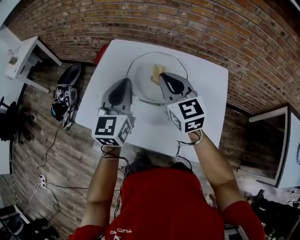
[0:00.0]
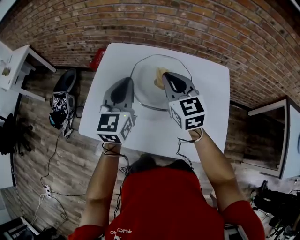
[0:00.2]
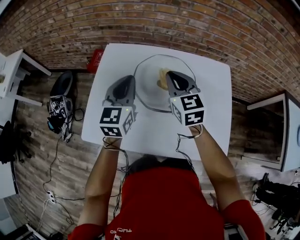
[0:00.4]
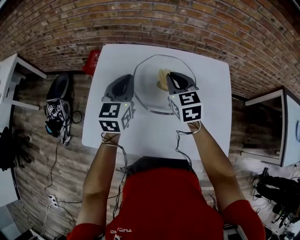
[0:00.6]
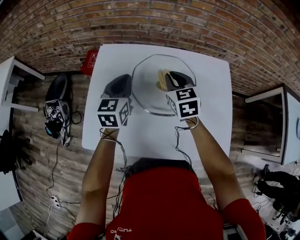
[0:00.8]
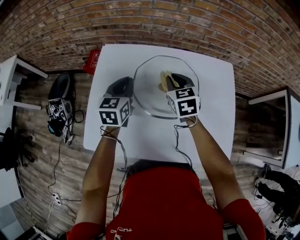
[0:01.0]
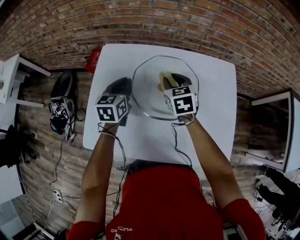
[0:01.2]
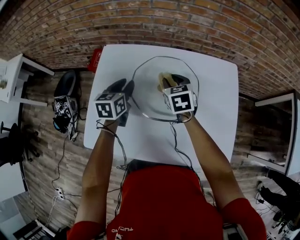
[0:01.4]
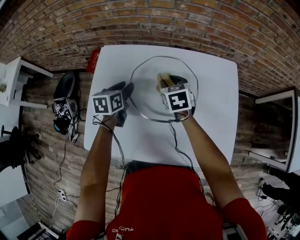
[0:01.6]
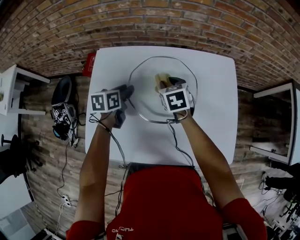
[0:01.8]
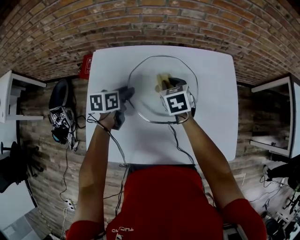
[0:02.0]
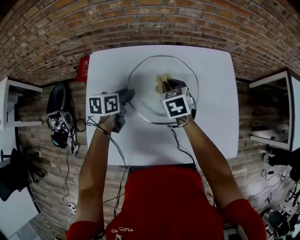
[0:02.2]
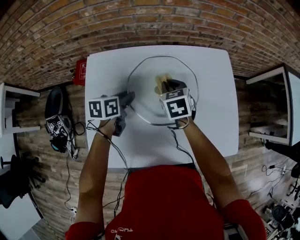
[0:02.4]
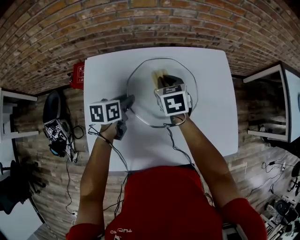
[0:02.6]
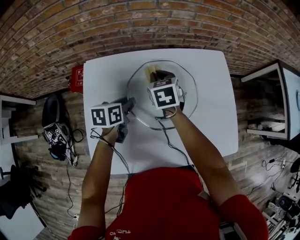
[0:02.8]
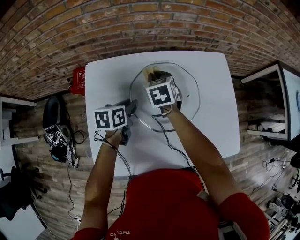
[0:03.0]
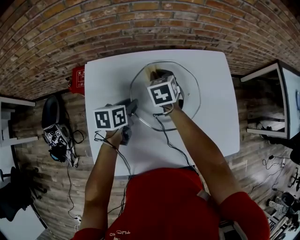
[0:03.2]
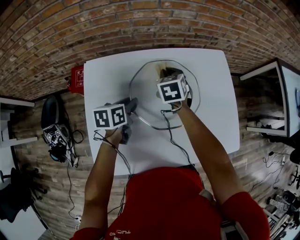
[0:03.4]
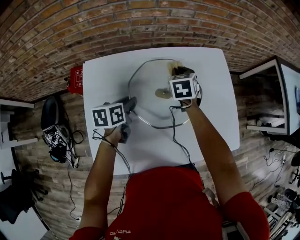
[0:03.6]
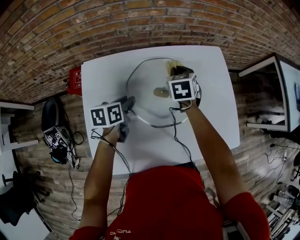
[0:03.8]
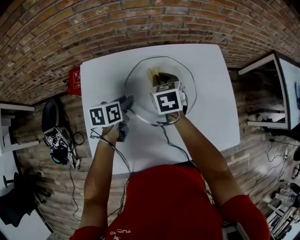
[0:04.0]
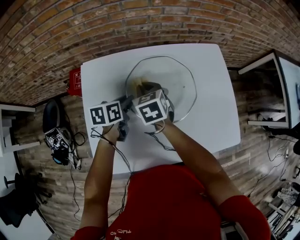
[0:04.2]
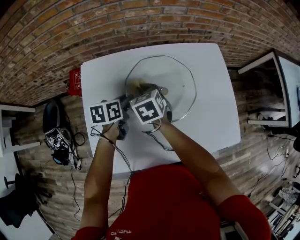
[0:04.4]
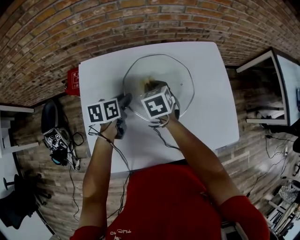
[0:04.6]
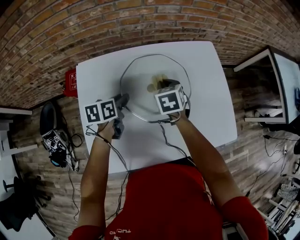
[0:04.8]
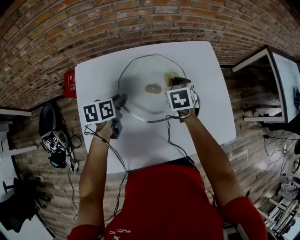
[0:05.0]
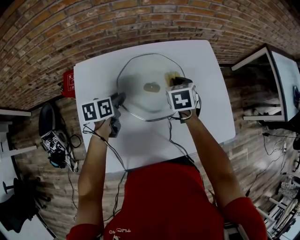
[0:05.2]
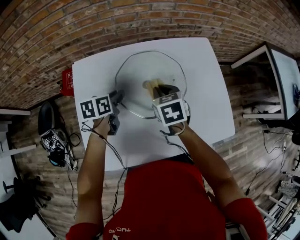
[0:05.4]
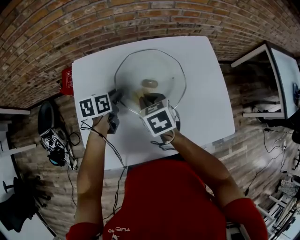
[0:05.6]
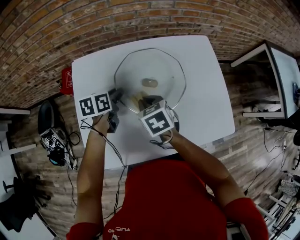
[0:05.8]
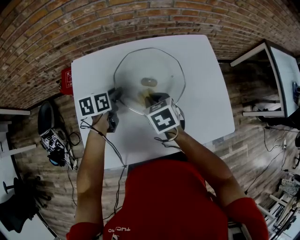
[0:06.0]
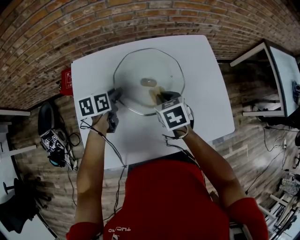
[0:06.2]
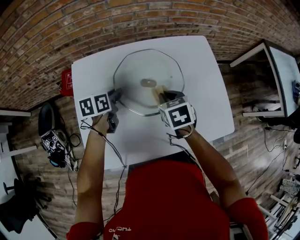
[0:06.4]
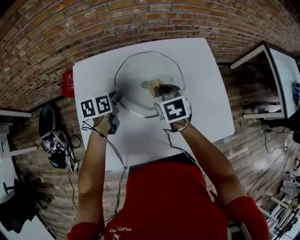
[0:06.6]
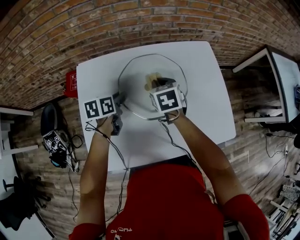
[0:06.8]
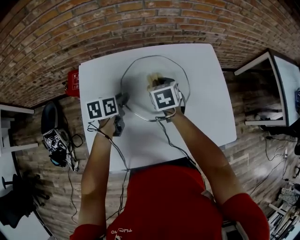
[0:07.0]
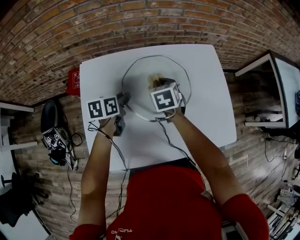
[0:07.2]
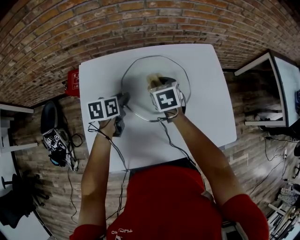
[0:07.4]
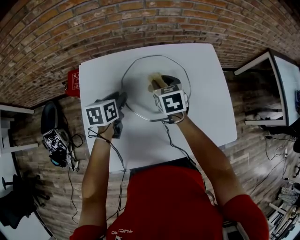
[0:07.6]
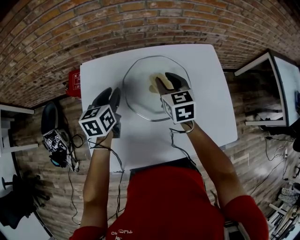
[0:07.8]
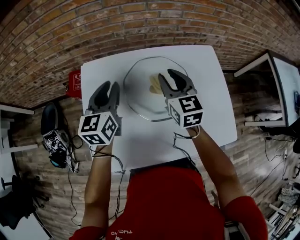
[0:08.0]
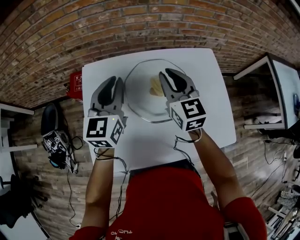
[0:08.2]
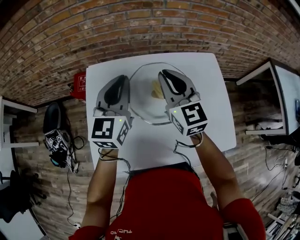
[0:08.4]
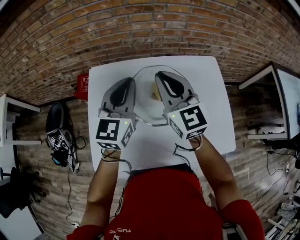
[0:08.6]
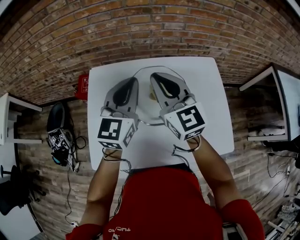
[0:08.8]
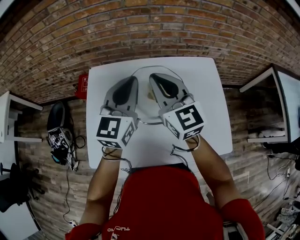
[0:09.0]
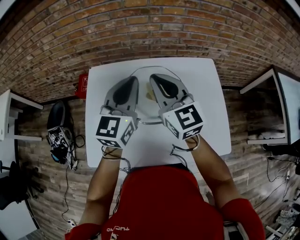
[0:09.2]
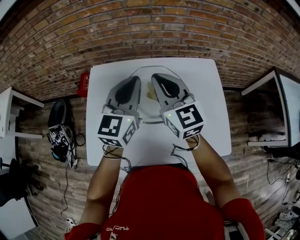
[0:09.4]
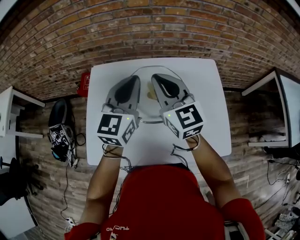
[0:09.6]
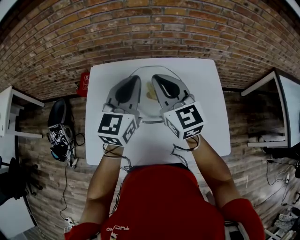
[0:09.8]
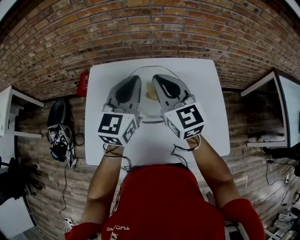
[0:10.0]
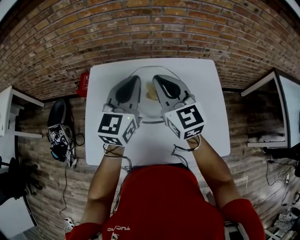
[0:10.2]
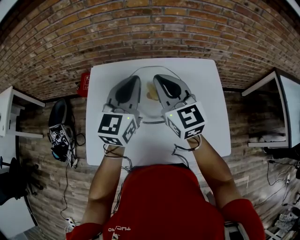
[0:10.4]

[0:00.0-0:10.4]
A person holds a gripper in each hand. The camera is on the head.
0:00.0 to 0:01.4: The left gripper heads forward and downward, covering some 25 cm, rotates approximately 30 degrees, and opens. Meanwhile the right gripper is displaced downward and forward by approximately 25 cm, tilts its fingers some 30 degrees downward, and opens up.
0:01.4 to 0:03.0: The left gripper is displaced downward by some 5 cm, and rotates about 30 degrees. Meanwhile the right gripper ends up roughly 10 cm from where it was.
0:03.0 to 0:04.4: The right gripper moves backward, about 10 cm.
0:04.4 to 0:06.0: The right gripper heads to the right and backward, covering roughly 10 cm.
0:06.0 to 0:07.4: The right gripper is displaced forward by roughly 10 cm.
0:07.4 to 0:09.0: The two grippers go some 25 cm upward. The left gripper angles its fingers upward, by some 40 degrees, and closes up. The right gripper points its fingers about 50 degrees further upward.
0:09.0 to 0:10.4: The grippers move only a little.

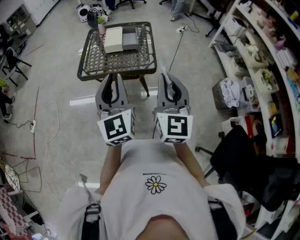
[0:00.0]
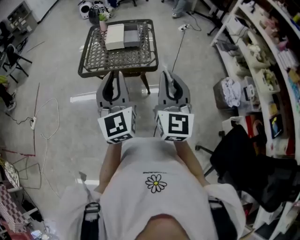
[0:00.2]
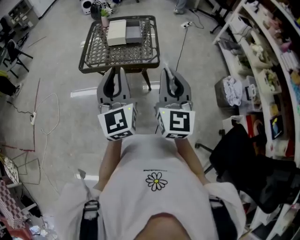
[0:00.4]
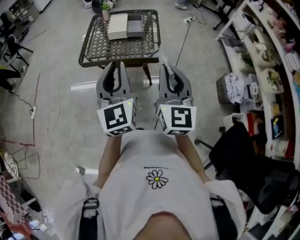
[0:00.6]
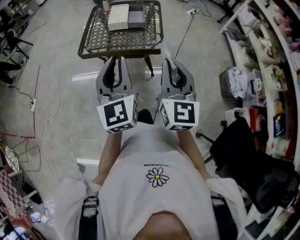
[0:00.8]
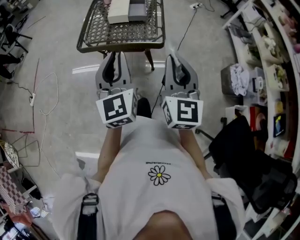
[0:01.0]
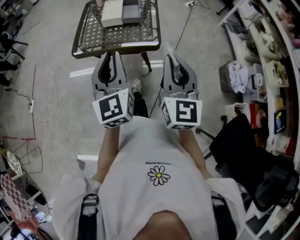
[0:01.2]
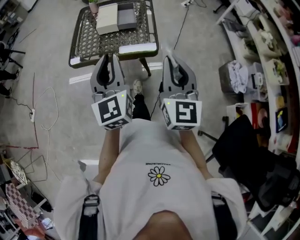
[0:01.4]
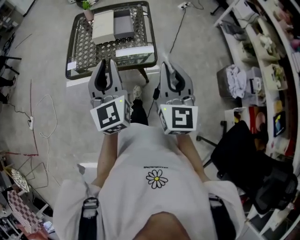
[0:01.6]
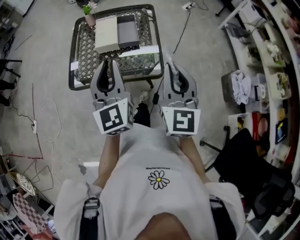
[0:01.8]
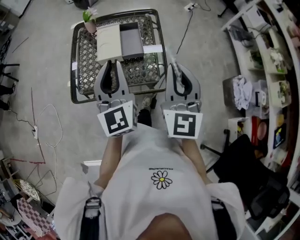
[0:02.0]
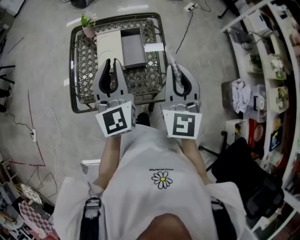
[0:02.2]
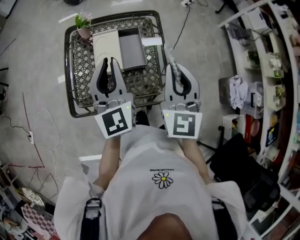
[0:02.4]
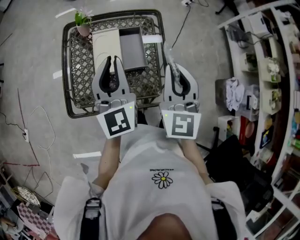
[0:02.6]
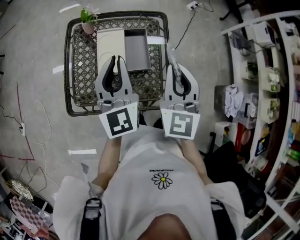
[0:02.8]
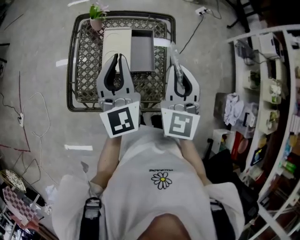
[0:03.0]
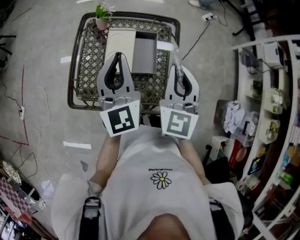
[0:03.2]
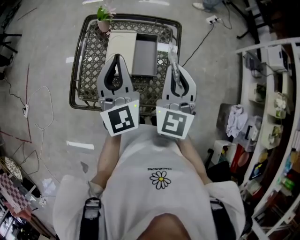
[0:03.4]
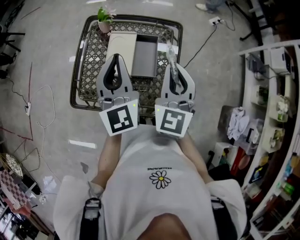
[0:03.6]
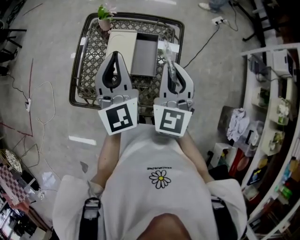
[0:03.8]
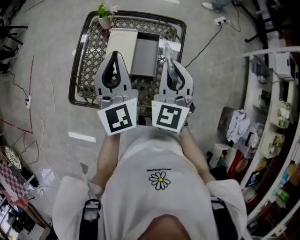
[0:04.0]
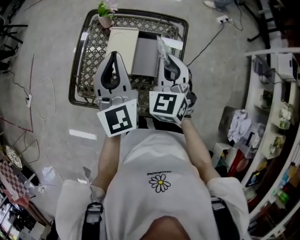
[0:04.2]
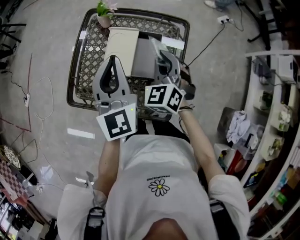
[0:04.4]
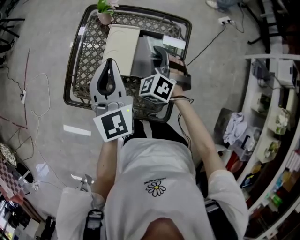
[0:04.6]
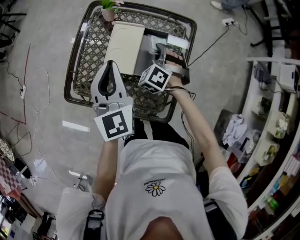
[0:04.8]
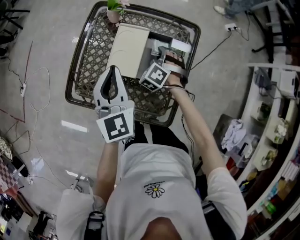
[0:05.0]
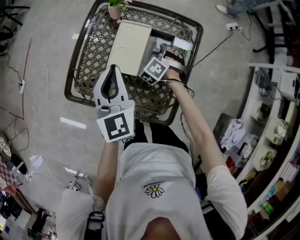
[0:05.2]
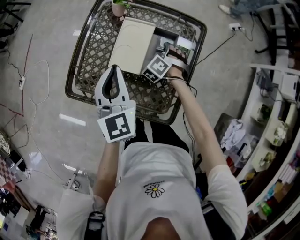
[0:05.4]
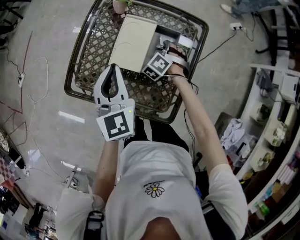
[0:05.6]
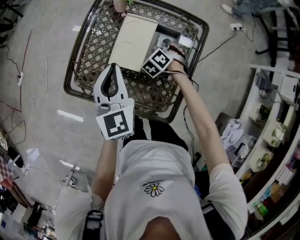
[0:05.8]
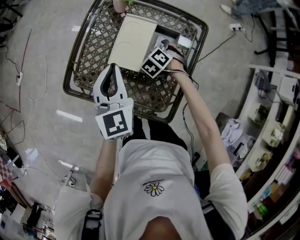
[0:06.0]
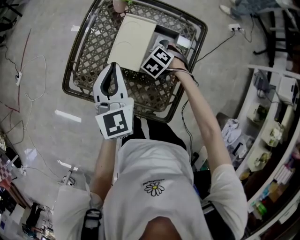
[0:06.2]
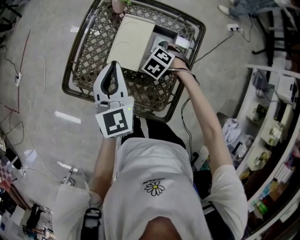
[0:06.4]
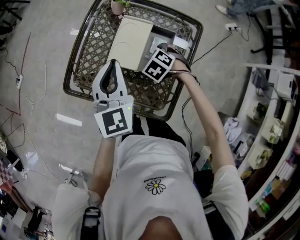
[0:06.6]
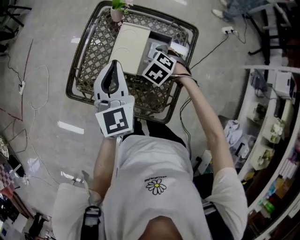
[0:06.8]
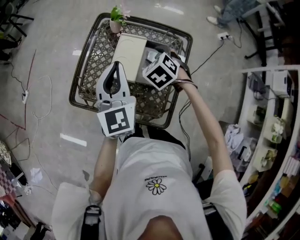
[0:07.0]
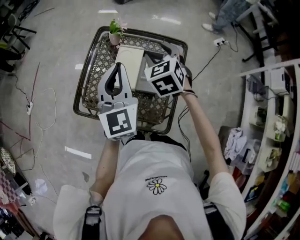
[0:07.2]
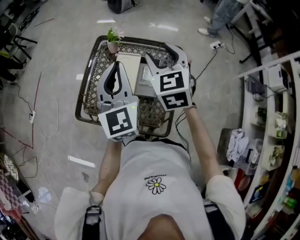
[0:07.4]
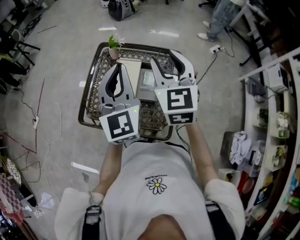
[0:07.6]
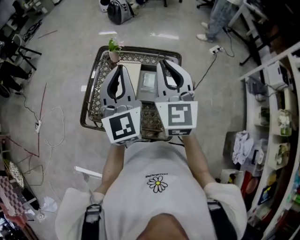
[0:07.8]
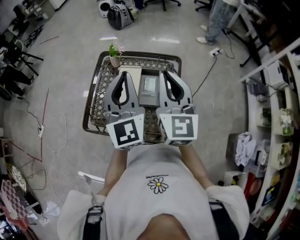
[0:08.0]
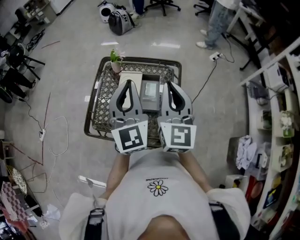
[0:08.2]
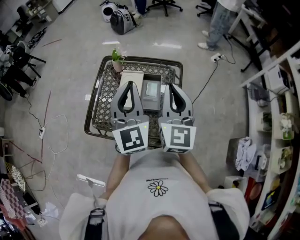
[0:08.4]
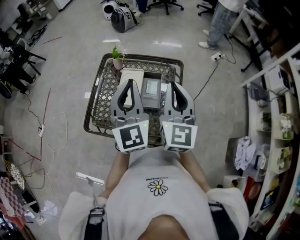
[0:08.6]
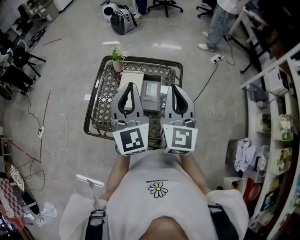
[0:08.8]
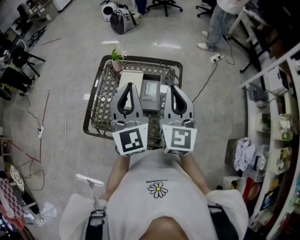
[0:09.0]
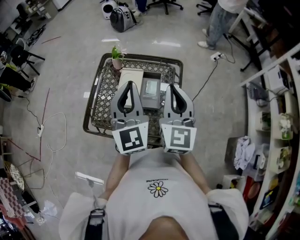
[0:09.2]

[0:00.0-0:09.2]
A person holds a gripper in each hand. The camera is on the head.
0:00.0 to 0:01.6: The grippers both shift forward by roughly 15 cm.
0:01.6 to 0:03.0: The grippers both shift forward by roughly 35 cm.
0:03.0 to 0:04.6: The left gripper goes roughly 5 cm downward, while the right gripper goes approximately 25 cm downward and forward, and rolls counterclockwise, seen from behind, by about 40 degrees.
0:04.6 to 0:06.2: The right gripper travels downward by some 15 cm, angles its fingers downward, by roughly 30 degrees, and opens up; the left gripper goes roughly 5 cm downward.
0:06.2 to 0:07.6: The left gripper heads upward, covering some 20 cm, and swivels some 20 degrees; the right gripper goes roughly 40 cm upward, and angles its fingers upward, by roughly 60 degrees.
0:07.6 to 0:09.2: The right gripper heads backward, covering some 5 cm, turns by about 20 degrees, and closes up.

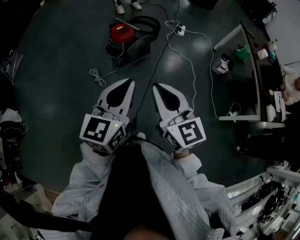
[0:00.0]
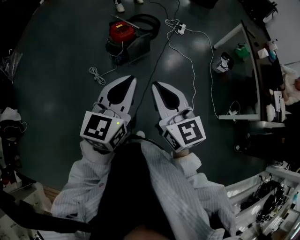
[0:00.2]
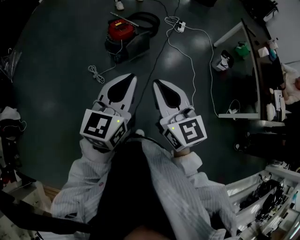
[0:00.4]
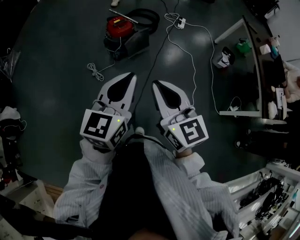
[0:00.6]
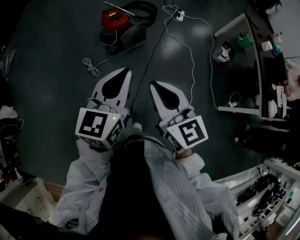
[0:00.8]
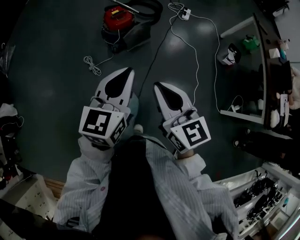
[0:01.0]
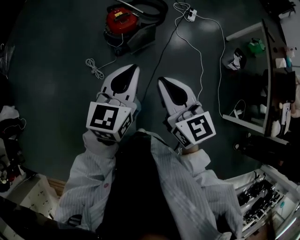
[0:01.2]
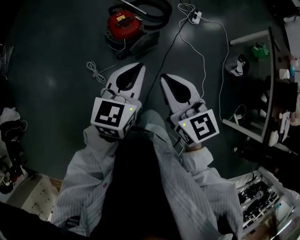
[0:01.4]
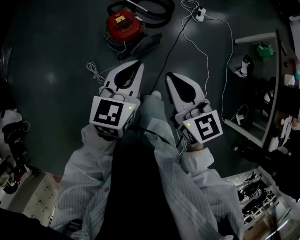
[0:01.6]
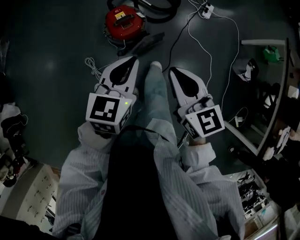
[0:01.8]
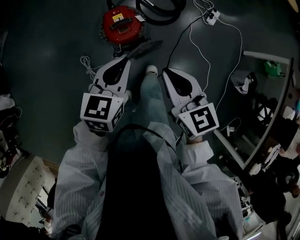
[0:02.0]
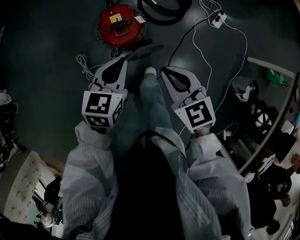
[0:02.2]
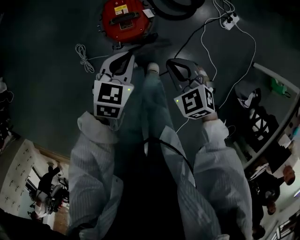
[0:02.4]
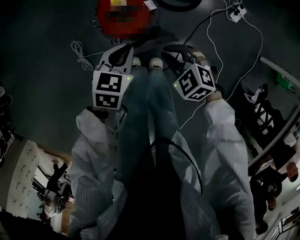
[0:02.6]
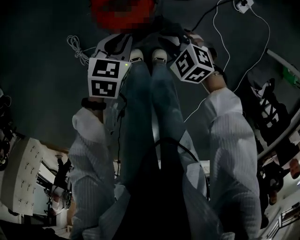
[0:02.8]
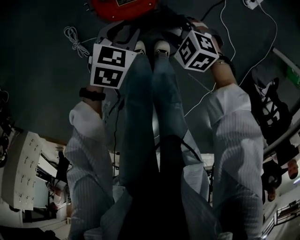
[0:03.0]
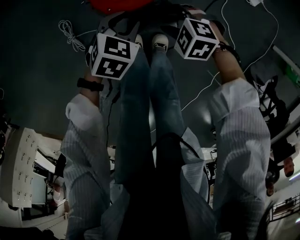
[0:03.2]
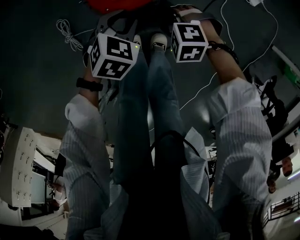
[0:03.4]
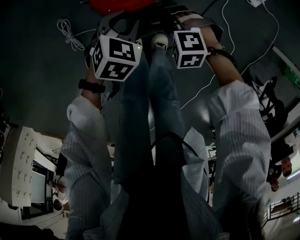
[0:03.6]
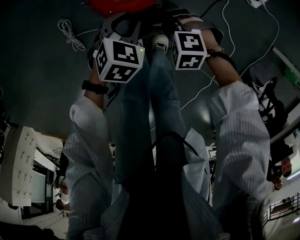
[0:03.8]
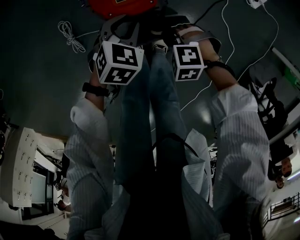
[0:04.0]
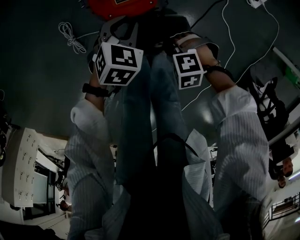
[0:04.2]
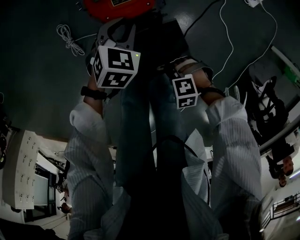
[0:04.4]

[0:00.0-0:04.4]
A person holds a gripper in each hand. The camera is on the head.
0:00.0 to 0:01.4: The two grippers go some 35 cm forward.
0:01.4 to 0:03.0: Both grippers travel together downward, about 60 cm. The right gripper tilts its fingers roughly 50 degrees downward, and opens; the left gripper tips its fingers downward by about 40 degrees, and opens.
0:03.0 to 0:04.4: The right gripper changes place by roughly 20 cm, turns by about 30 degrees, and closes.
